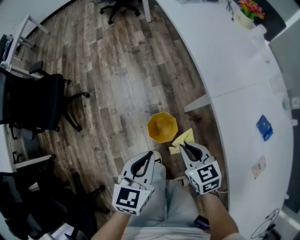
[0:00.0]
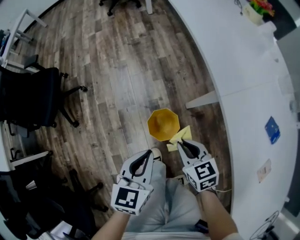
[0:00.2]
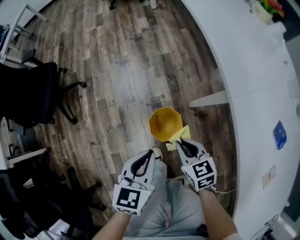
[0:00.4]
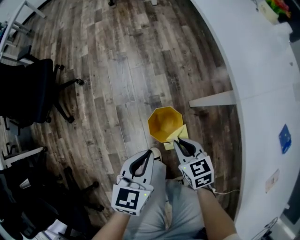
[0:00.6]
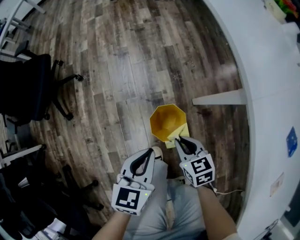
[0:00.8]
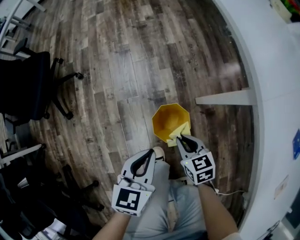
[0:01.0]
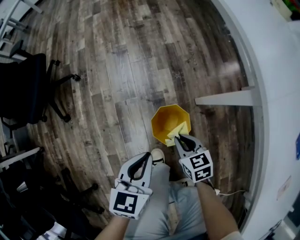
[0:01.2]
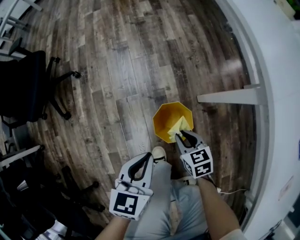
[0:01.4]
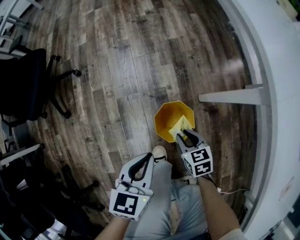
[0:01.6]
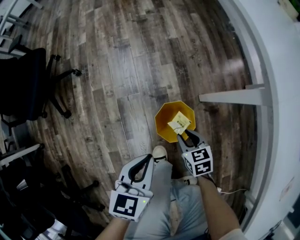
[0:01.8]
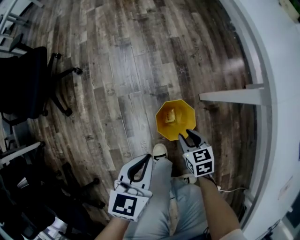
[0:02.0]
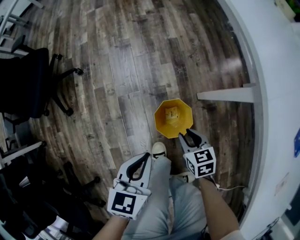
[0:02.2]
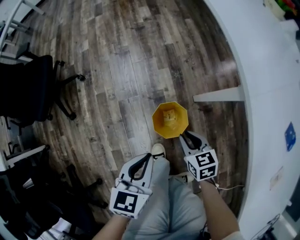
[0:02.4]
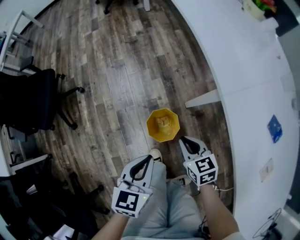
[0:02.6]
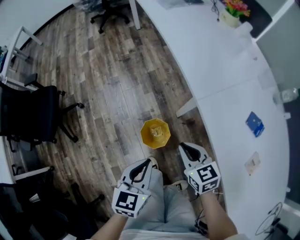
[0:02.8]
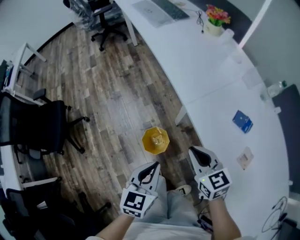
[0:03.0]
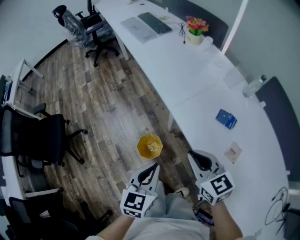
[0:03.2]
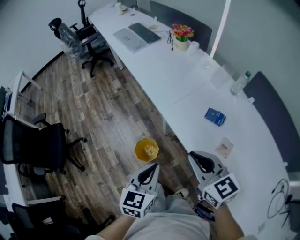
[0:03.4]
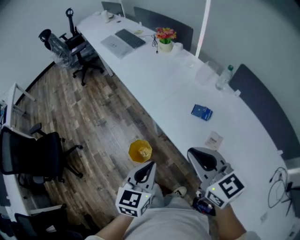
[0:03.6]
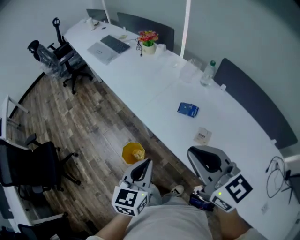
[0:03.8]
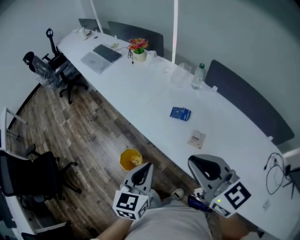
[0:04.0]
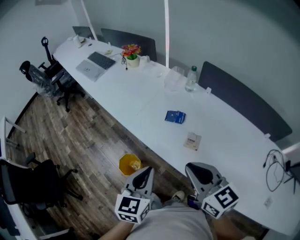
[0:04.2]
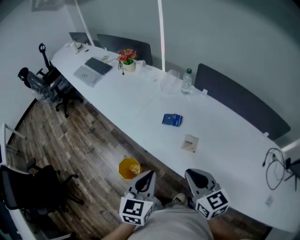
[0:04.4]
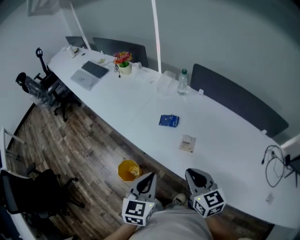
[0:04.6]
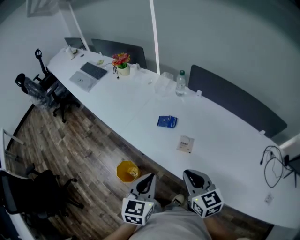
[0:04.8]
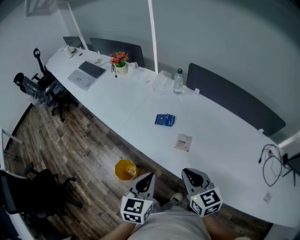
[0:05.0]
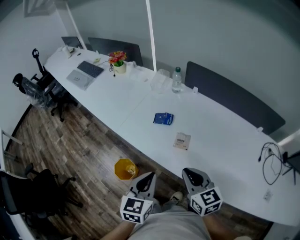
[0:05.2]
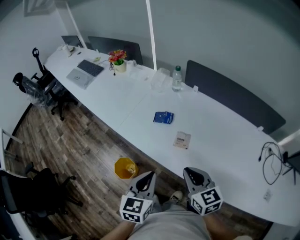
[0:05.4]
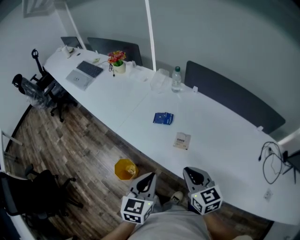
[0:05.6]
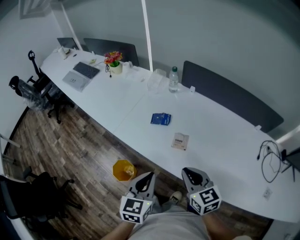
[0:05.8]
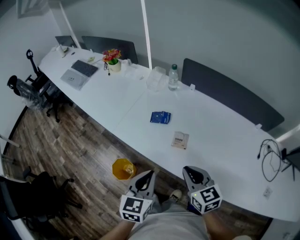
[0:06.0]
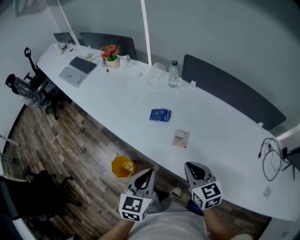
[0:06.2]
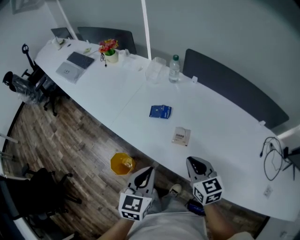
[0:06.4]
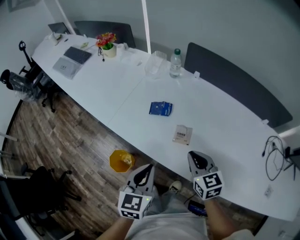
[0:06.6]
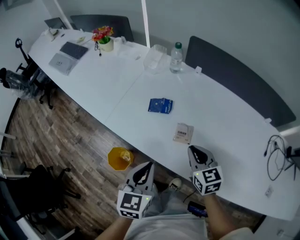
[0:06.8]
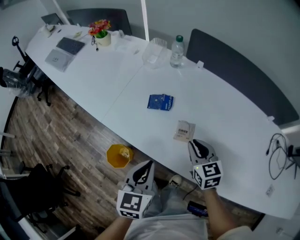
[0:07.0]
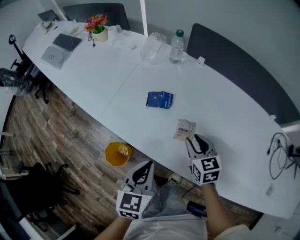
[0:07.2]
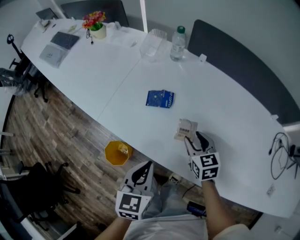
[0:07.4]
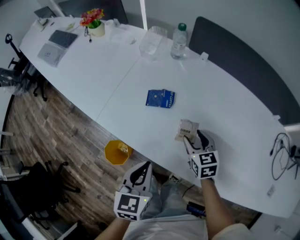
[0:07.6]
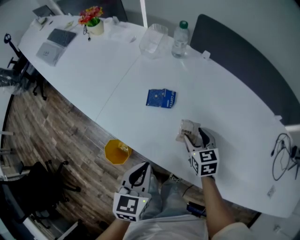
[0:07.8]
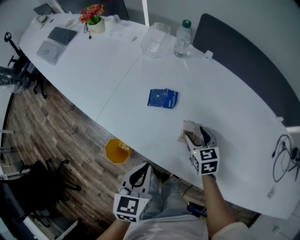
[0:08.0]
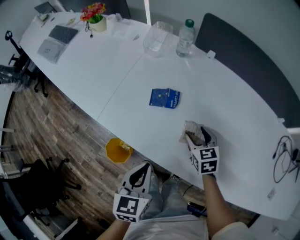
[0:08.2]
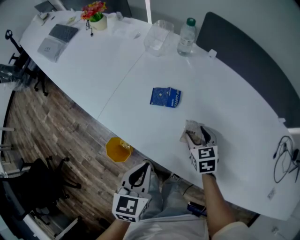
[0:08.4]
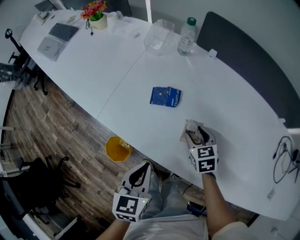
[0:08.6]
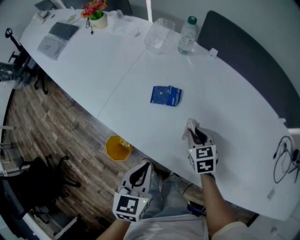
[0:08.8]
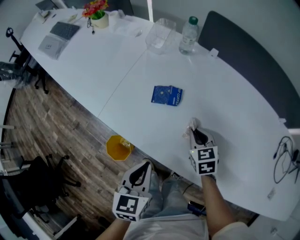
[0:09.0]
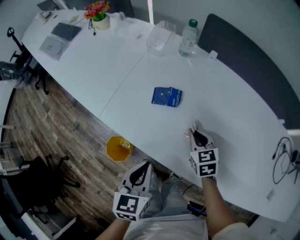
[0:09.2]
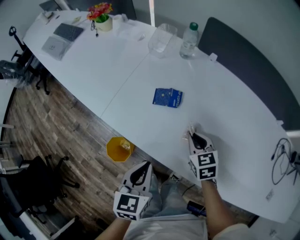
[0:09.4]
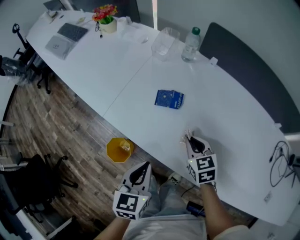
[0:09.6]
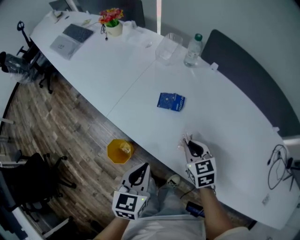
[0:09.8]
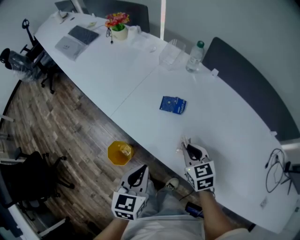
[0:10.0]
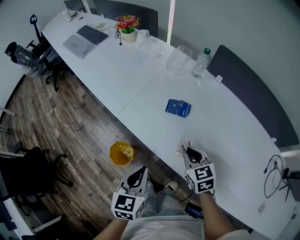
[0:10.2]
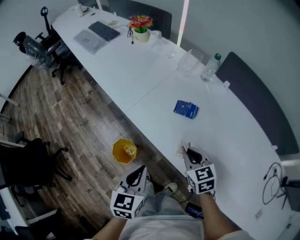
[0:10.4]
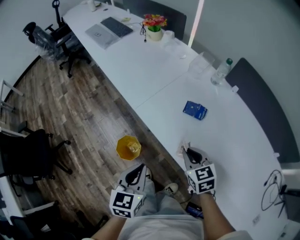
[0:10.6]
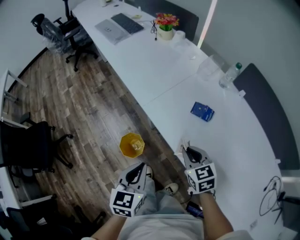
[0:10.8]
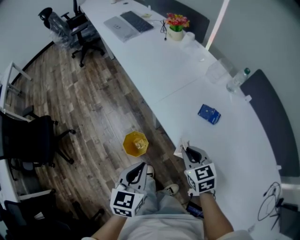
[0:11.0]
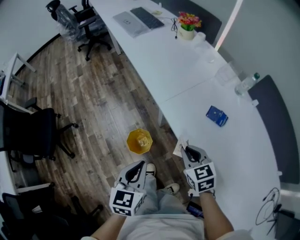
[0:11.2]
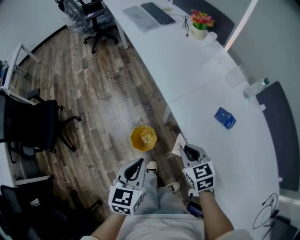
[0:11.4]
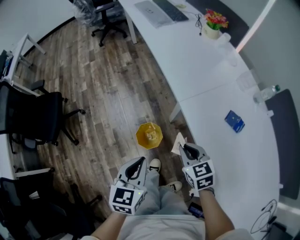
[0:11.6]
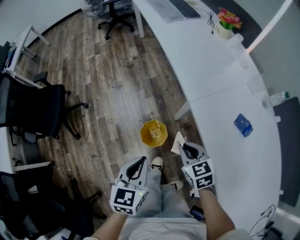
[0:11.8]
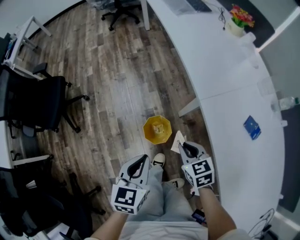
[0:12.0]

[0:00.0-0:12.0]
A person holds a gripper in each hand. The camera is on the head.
0:00.0 to 0:01.6: Both grippers travel together downward, approximately 25 cm.
0:01.6 to 0:03.0: The right gripper moves upward, approximately 40 cm, and changes its angle by some 30 degrees, while the left gripper is displaced upward and to the right by approximately 30 cm.
0:03.0 to 0:04.4: The right gripper heads to the right, backward and upward, covering approximately 35 cm, and changes its angle by some 30 degrees, while the left gripper goes about 25 cm to the right and upward, and swivels about 20 degrees.
0:04.4 to 0:06.0: The left gripper changes place by approximately 5 cm. The right gripper moves downward, approximately 5 cm.
0:06.0 to 0:07.6: The right gripper travels downward and forward by roughly 25 cm, and opens its fingers; the left gripper travels downward and forward by some 15 cm.
0:07.6 to 0:09.0: The right gripper closes up.
0:09.0 to 0:10.4: The right gripper shifts roughly 15 cm to the left, upward and backward; the left gripper shifts roughly 10 cm to the left and backward.
0:10.4 to 0:12.0: The right gripper shifts by about 30 cm, and turns by roughly 30 degrees; the left gripper ends up approximately 25 cm from where it was, and changes its angle by approximately 30 degrees.

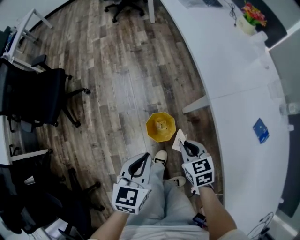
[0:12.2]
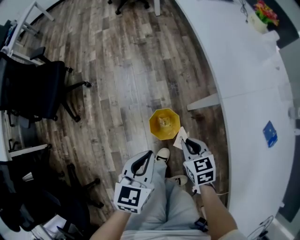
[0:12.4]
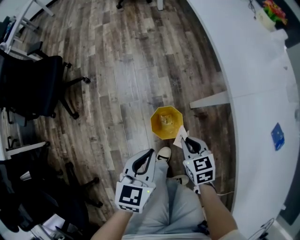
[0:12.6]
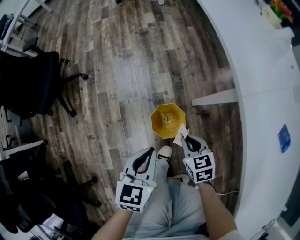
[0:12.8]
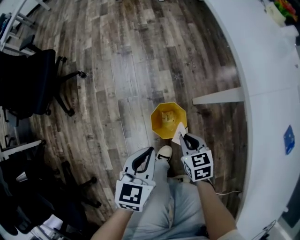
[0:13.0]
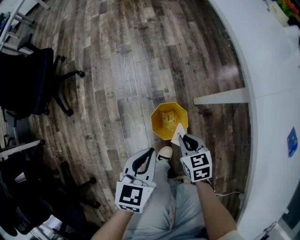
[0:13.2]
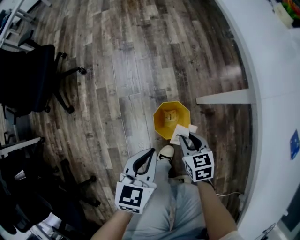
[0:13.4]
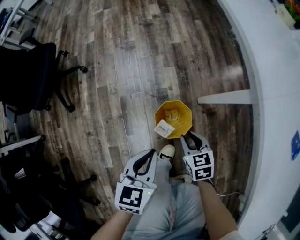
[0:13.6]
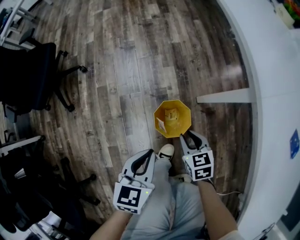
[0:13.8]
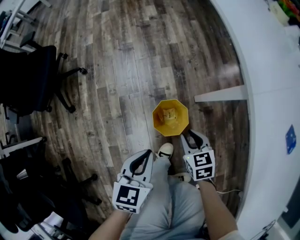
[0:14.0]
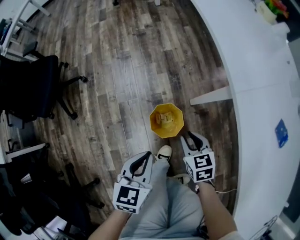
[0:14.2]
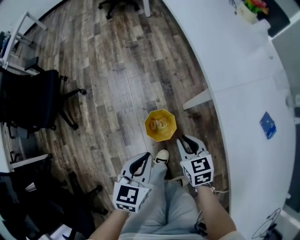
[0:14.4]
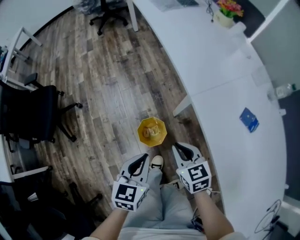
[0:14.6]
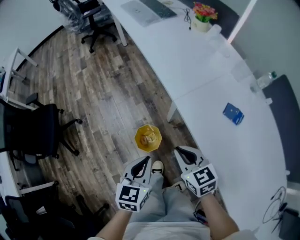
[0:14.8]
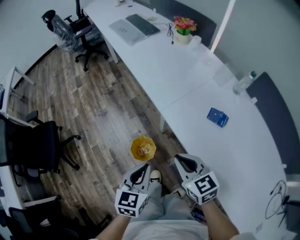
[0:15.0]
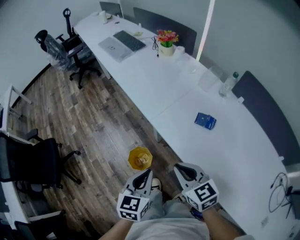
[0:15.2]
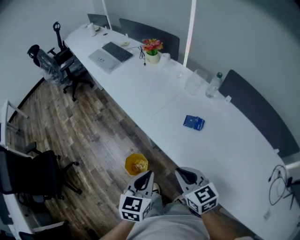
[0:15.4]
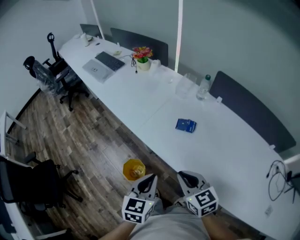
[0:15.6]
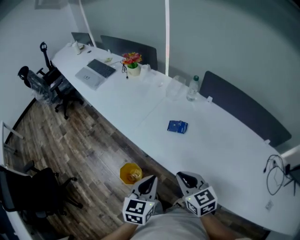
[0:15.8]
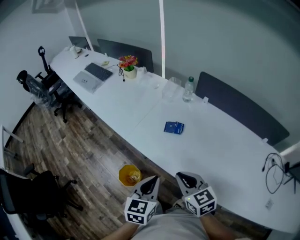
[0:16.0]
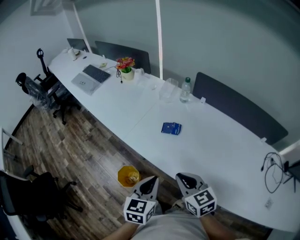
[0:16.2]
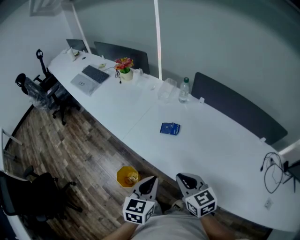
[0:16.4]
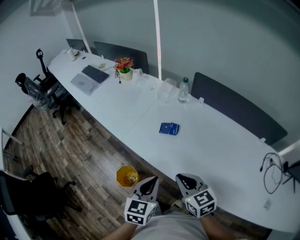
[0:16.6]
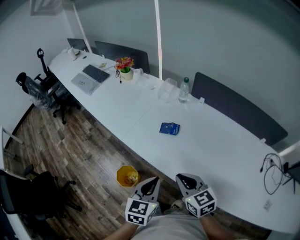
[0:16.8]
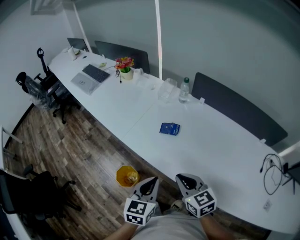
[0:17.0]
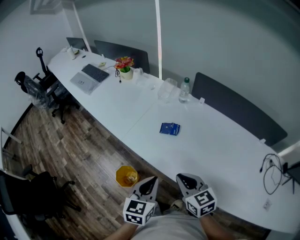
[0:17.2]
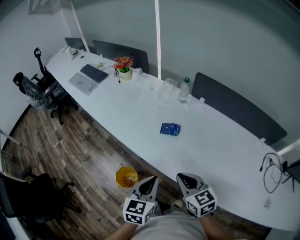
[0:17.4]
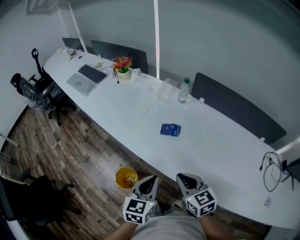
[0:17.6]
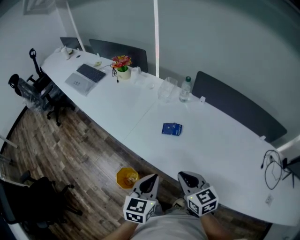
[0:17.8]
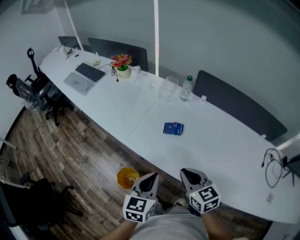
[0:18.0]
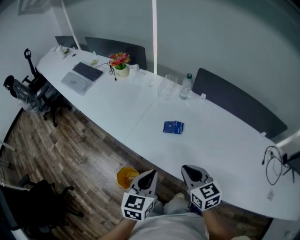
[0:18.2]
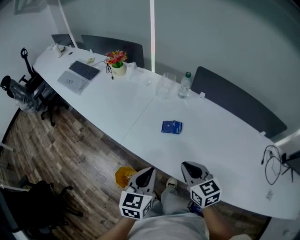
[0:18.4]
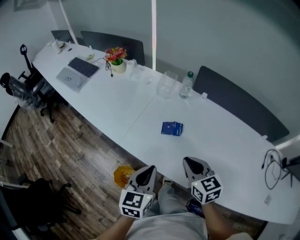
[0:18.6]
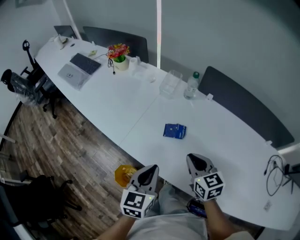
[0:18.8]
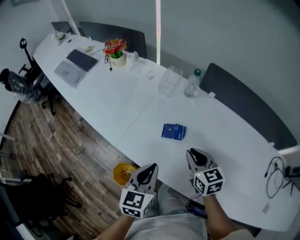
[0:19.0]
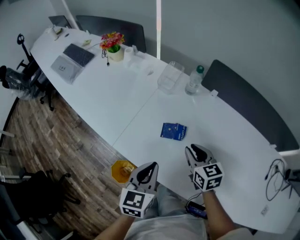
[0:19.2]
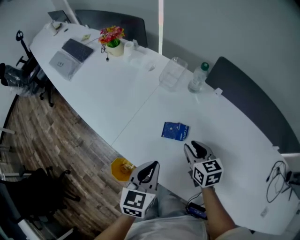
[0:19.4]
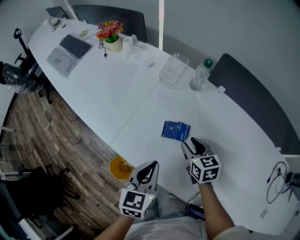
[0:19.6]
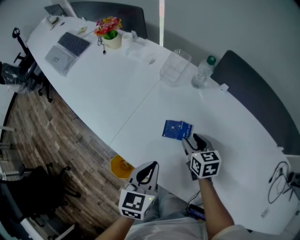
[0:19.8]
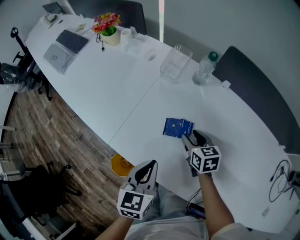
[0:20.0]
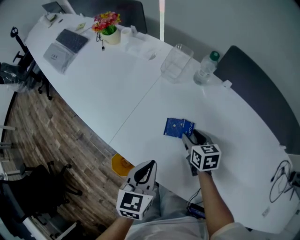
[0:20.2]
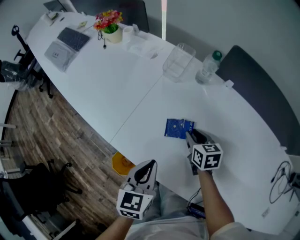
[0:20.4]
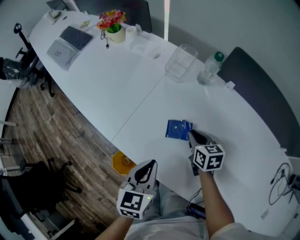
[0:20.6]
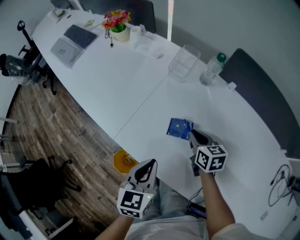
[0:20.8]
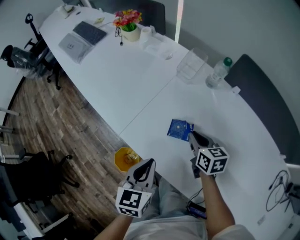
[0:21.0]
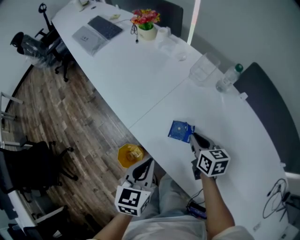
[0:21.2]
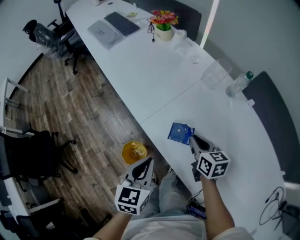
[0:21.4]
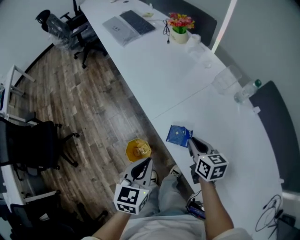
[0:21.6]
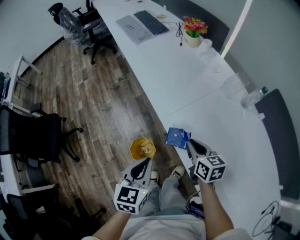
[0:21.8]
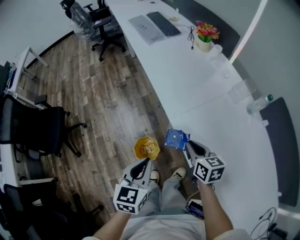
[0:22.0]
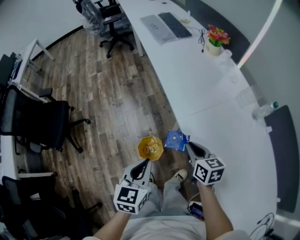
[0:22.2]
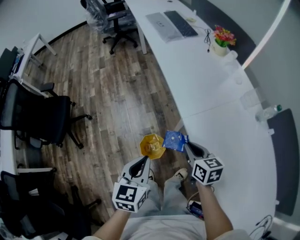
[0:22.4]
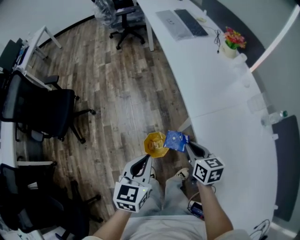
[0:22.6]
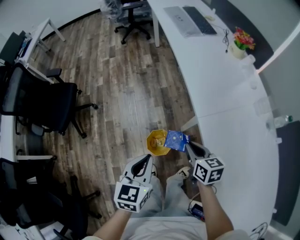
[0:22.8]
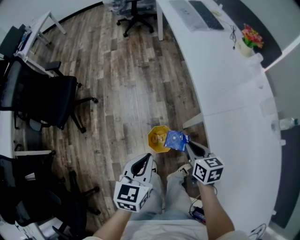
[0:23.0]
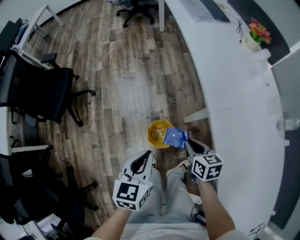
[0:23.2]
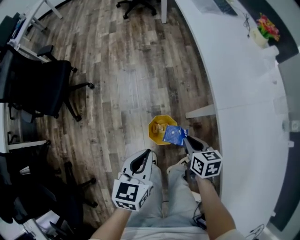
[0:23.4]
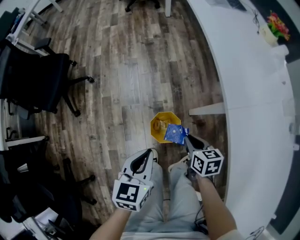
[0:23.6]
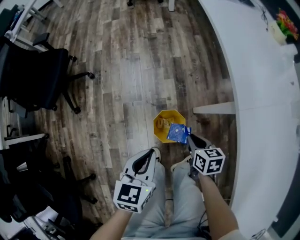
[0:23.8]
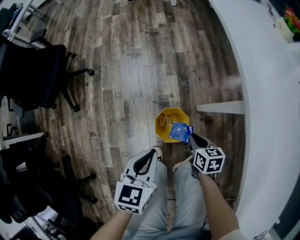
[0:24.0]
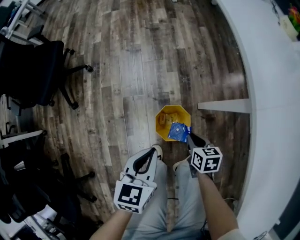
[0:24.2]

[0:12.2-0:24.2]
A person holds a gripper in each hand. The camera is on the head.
0:12.2 to 0:13.8: Both grippers move downward, roughly 20 cm.
0:13.8 to 0:15.2: The right gripper goes about 40 cm upward, and swivels approximately 30 degrees, while the left gripper shifts about 35 cm upward and to the right, and rotates roughly 30 degrees.
0:15.2 to 0:16.6: Both grippers move to the right, some 15 cm.
0:16.6 to 0:18.2: The right gripper shifts about 5 cm forward; the left gripper goes some 10 cm to the left and forward.
0:18.2 to 0:19.8: The left gripper shifts some 20 cm forward and downward, while the right gripper goes about 30 cm forward and downward, and opens its fingers.
0:19.8 to 0:21.2: Both grippers move to the left, approximately 10 cm. The right gripper closes.
0:21.2 to 0:22.6: The left gripper shifts by roughly 25 cm, and swivels roughly 30 degrees; the right gripper shifts by roughly 30 cm, and rotates some 30 degrees.
0:22.6 to 0:24.2: The grippers both shift downward by some 30 cm. The right gripper changes its angle by some 20 degrees.
